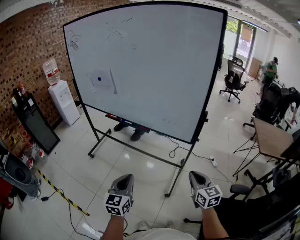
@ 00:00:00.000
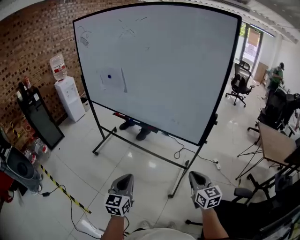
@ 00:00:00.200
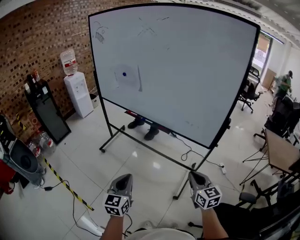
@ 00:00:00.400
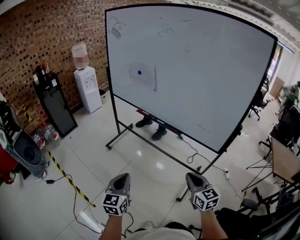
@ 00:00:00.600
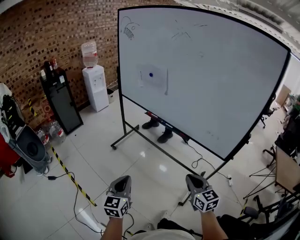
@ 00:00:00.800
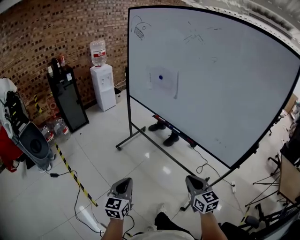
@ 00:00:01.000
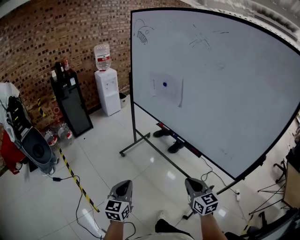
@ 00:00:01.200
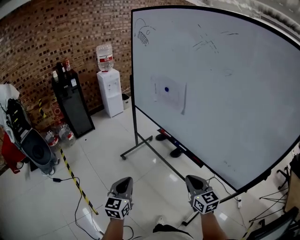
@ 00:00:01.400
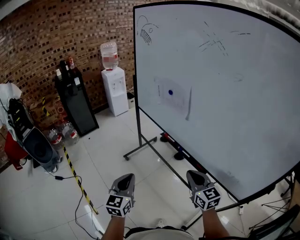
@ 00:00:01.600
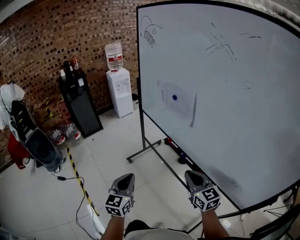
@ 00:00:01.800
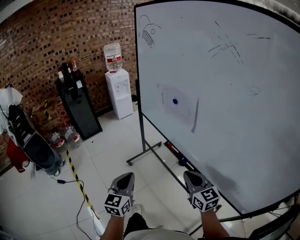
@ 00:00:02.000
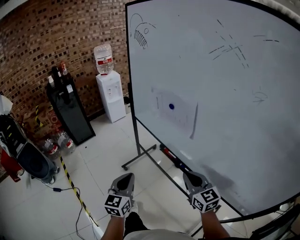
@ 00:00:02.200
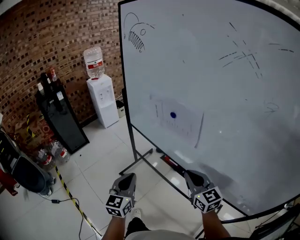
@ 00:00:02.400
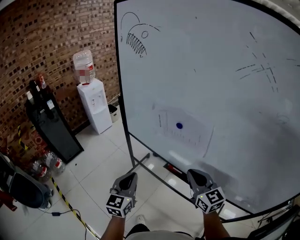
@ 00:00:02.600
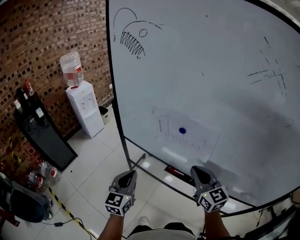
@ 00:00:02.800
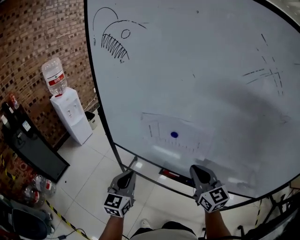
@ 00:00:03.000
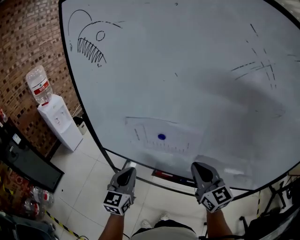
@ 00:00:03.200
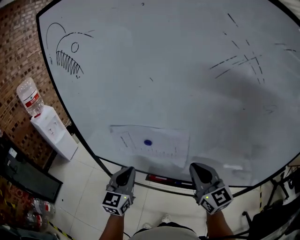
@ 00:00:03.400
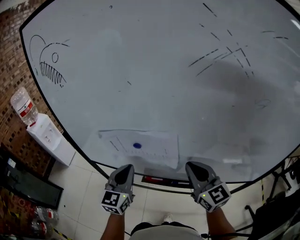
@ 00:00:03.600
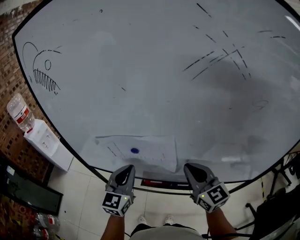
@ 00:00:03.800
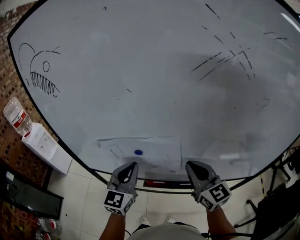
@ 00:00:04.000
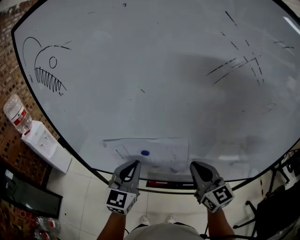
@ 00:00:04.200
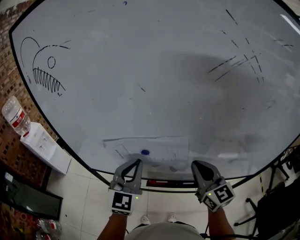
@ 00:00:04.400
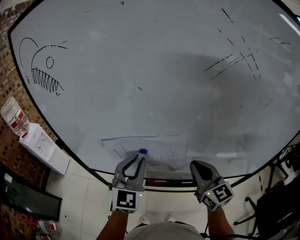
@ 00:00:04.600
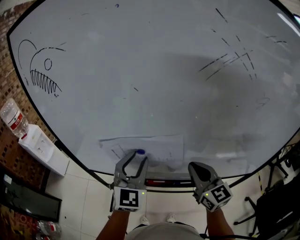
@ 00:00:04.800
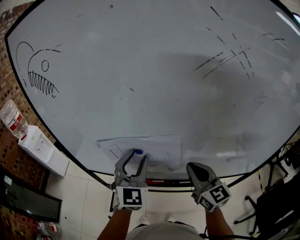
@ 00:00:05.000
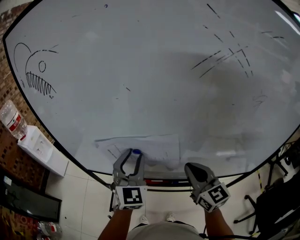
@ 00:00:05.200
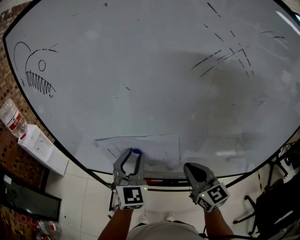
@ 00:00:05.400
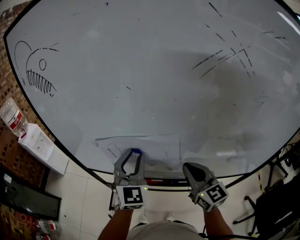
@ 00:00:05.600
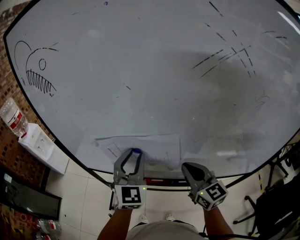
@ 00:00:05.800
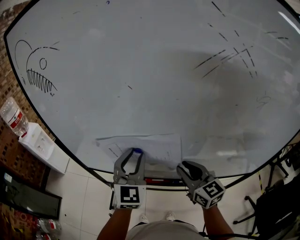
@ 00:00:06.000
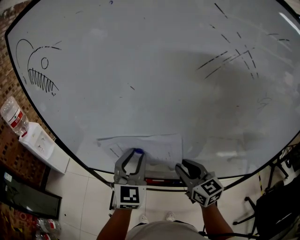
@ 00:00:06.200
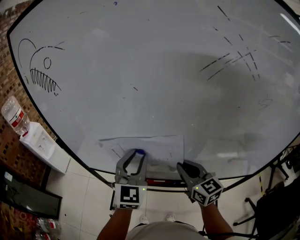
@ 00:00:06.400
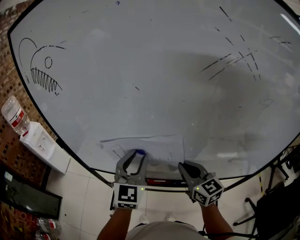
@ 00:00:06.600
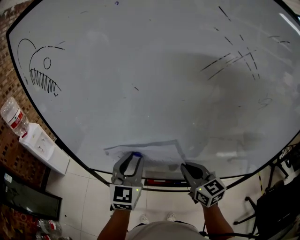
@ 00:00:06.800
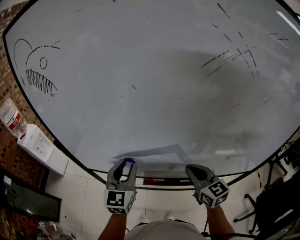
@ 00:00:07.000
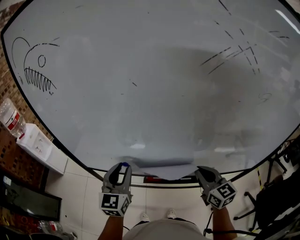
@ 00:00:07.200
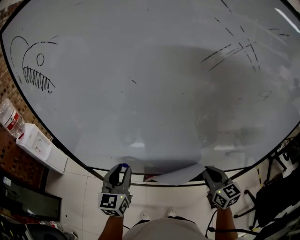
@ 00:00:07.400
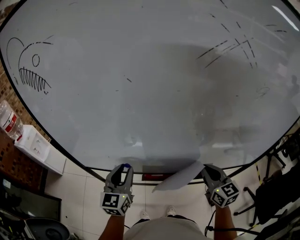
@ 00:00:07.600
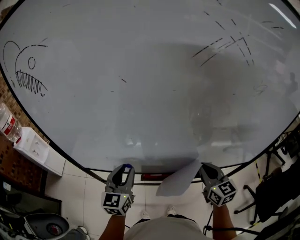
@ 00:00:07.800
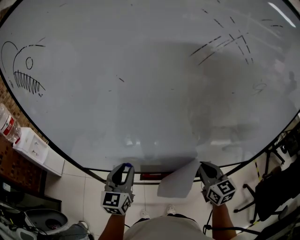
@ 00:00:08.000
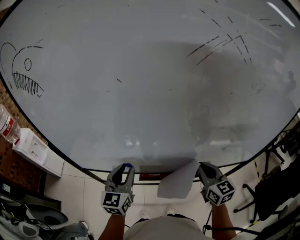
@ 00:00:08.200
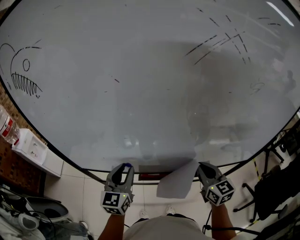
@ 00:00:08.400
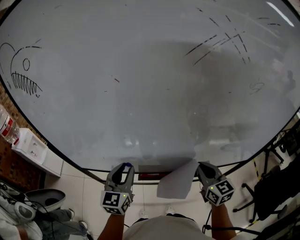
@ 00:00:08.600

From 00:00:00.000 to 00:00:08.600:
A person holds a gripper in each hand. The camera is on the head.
From 00:00:00.000 to 00:00:01.400: The left gripper changes place by approximately 30 cm, and swivels roughly 20 degrees; the right gripper moves some 40 cm, and rotates roughly 30 degrees.
From 00:00:01.400 to 00:00:02.800: Both grippers move forward, roughly 40 cm.
From 00:00:02.800 to 00:00:04.400: The right gripper changes place by roughly 10 cm, and turns by some 30 degrees, while the left gripper shifts by roughly 25 cm, and swivels roughly 30 degrees.
From 00:00:04.400 to 00:00:05.800: The left gripper opens.
From 00:00:05.800 to 00:00:07.200: The left gripper shifts roughly 10 cm downward and to the left, and turns by roughly 20 degrees; the right gripper ends up roughly 5 cm from where it was, and opens and closes again.
From 00:00:07.200 to 00:00:08.600: The grippers move only a little.

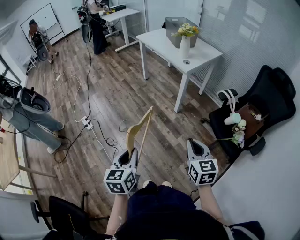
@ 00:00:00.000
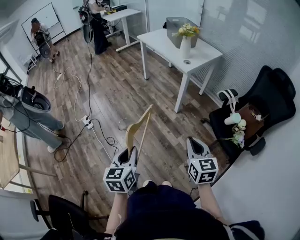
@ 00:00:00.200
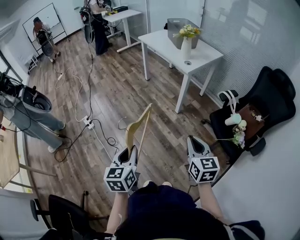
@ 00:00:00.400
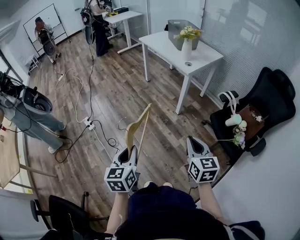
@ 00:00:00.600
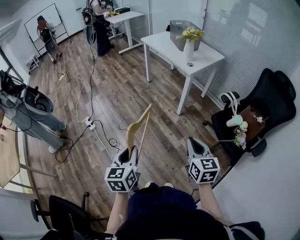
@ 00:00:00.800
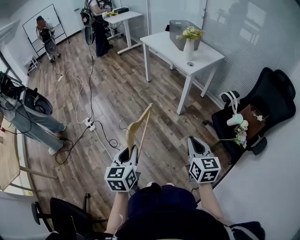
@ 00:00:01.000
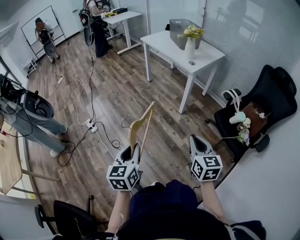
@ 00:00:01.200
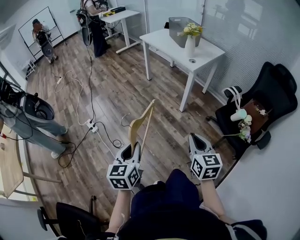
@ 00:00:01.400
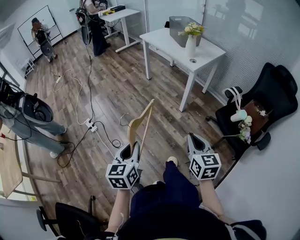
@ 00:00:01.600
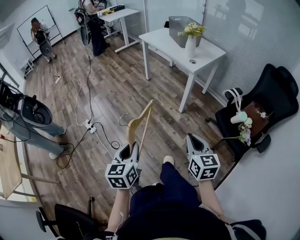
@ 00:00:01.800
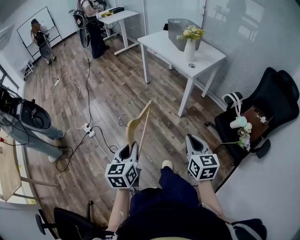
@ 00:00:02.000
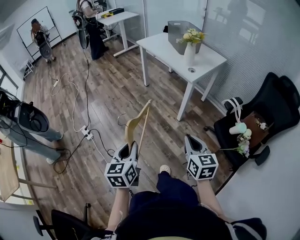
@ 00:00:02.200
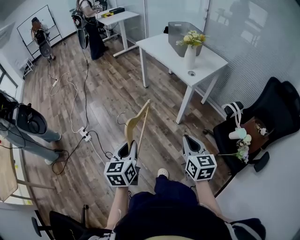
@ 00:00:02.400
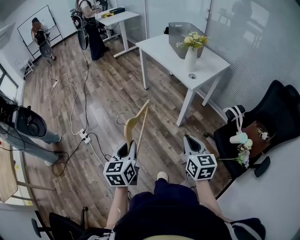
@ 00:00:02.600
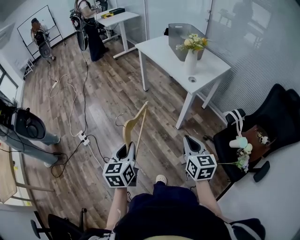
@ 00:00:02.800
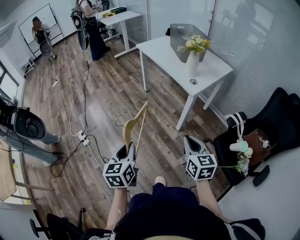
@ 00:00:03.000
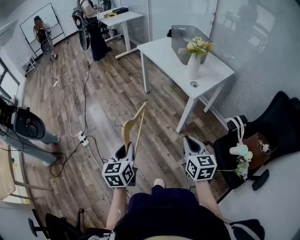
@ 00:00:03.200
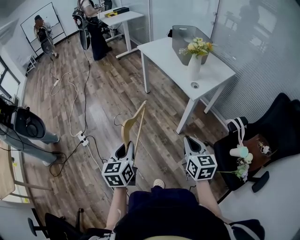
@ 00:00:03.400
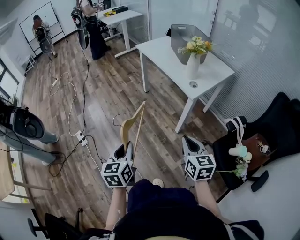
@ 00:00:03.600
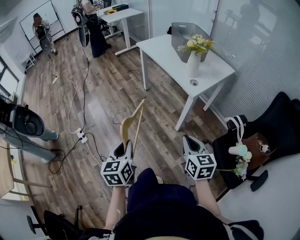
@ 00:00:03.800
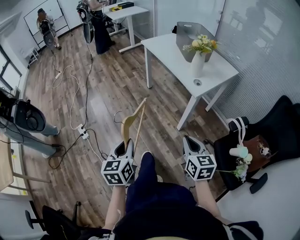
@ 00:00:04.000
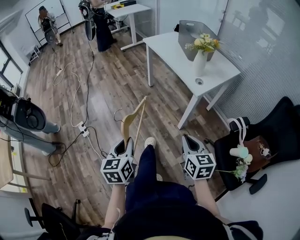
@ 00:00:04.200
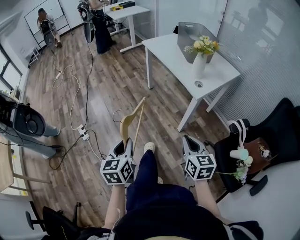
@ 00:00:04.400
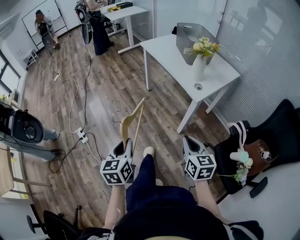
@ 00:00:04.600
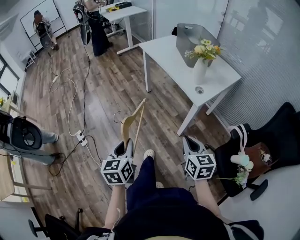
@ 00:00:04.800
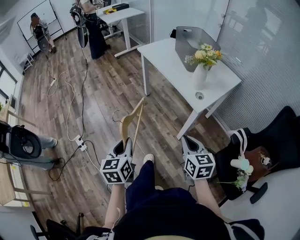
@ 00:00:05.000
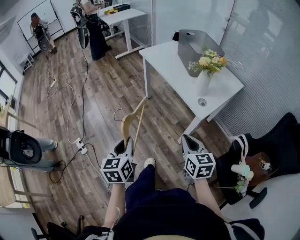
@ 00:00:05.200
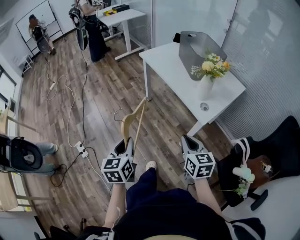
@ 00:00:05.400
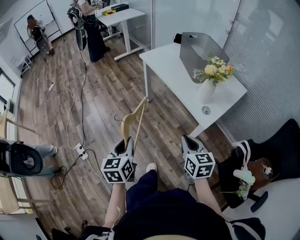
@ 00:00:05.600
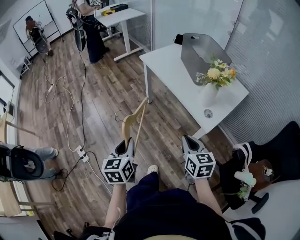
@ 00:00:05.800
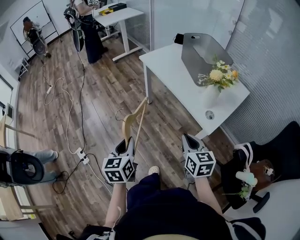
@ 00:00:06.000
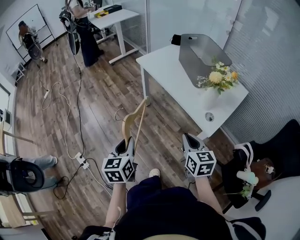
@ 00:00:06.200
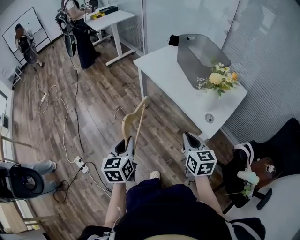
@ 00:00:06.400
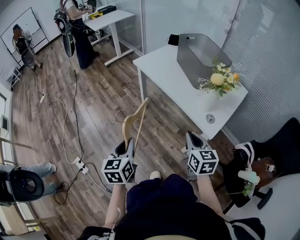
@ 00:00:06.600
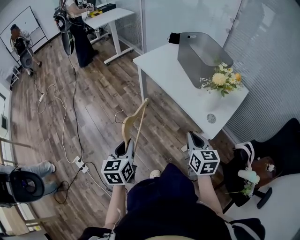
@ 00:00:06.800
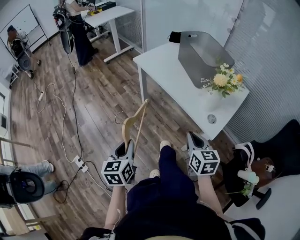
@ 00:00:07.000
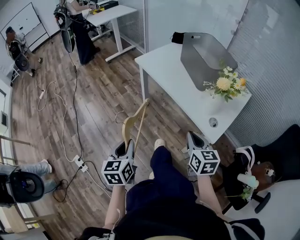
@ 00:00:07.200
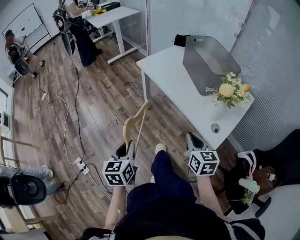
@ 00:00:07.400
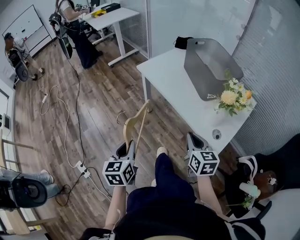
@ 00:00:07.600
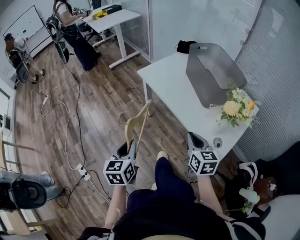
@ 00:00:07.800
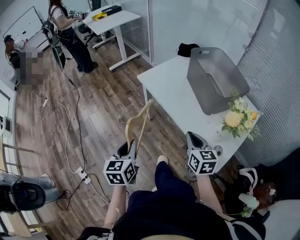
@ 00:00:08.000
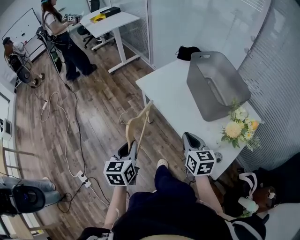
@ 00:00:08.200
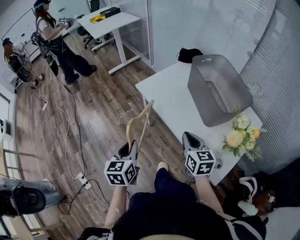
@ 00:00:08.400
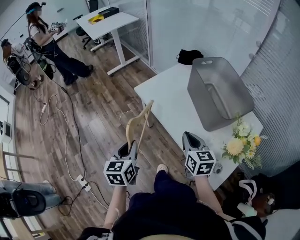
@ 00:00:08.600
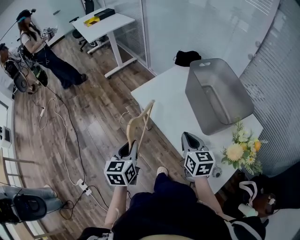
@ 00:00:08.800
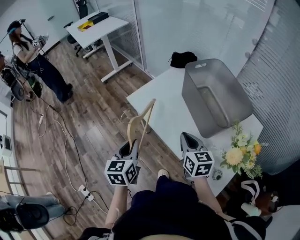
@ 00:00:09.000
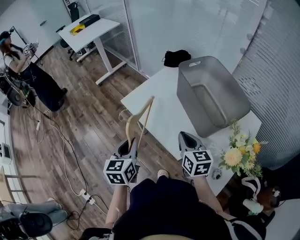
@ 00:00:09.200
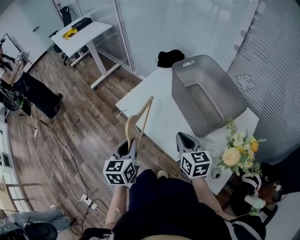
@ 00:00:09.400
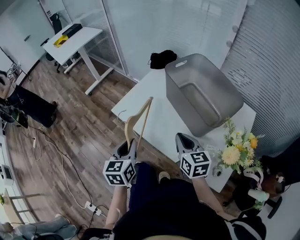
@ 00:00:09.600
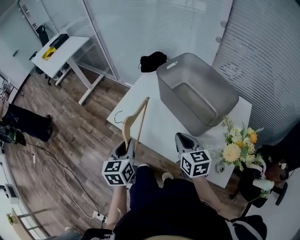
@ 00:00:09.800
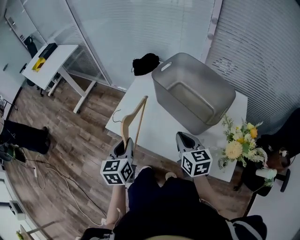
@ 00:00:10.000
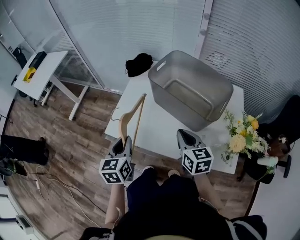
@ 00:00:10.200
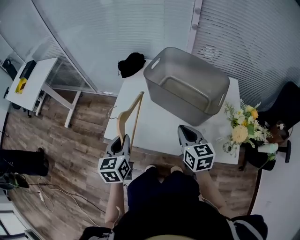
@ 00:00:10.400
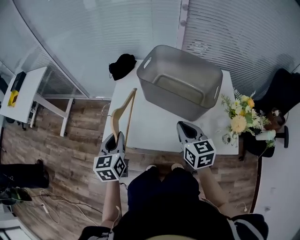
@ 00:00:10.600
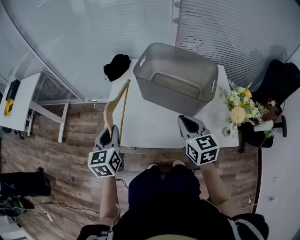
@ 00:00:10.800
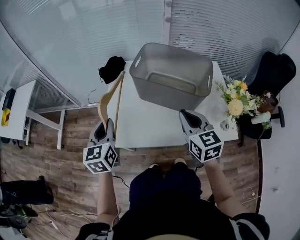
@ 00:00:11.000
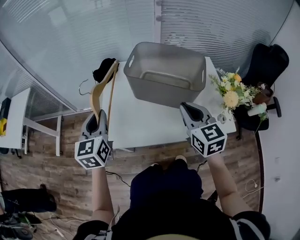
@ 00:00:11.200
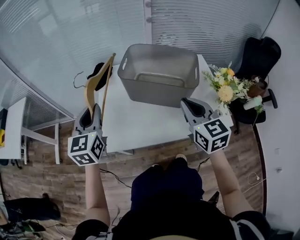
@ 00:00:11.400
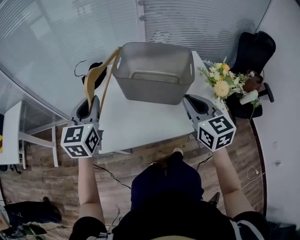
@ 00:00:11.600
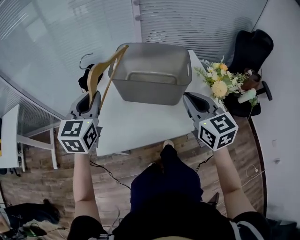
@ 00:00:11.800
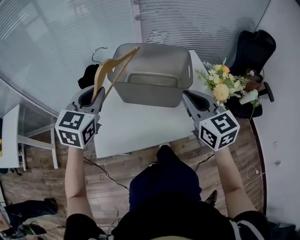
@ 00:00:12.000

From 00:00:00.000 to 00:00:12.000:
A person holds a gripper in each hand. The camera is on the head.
From 00:00:00.000 to 00:00:01.600: Both grippers travel together to the left, roughly 10 cm.
From 00:00:01.600 to 00:00:03.000: The two grippers go approximately 25 cm forward.
From 00:00:03.000 to 00:00:04.400: The grippers move only a little.
From 00:00:04.400 to 00:00:06.000: The two grippers go some 30 cm forward.
From 00:00:06.000 to 00:00:07.600: Both grippers travel together forward, about 15 cm.
From 00:00:07.600 to 00:00:09.000: The grippers both shift forward by approximately 25 cm.
From 00:00:09.000 to 00:00:10.400: The left gripper moves about 20 cm, and rotates about 30 degrees; the right gripper ends up approximately 5 cm from where it was, and turns by approximately 30 degrees.
From 00:00:10.400 to 00:00:12.000: The grippers both shift upward by approximately 15 cm. The right gripper turns by about 20 degrees; the left gripper turns by some 50 degrees.

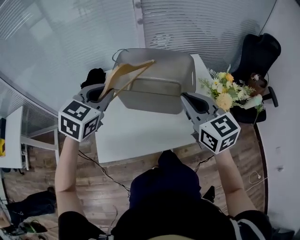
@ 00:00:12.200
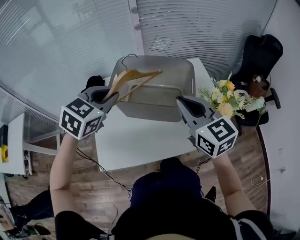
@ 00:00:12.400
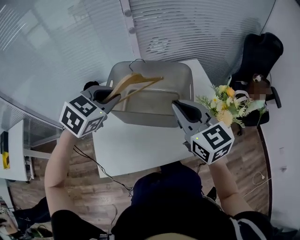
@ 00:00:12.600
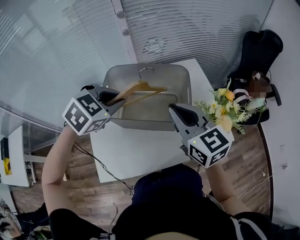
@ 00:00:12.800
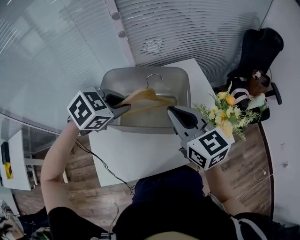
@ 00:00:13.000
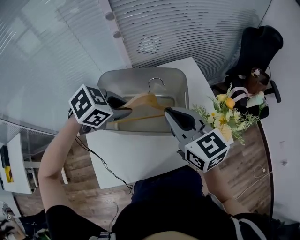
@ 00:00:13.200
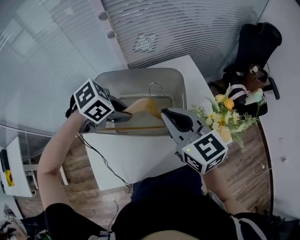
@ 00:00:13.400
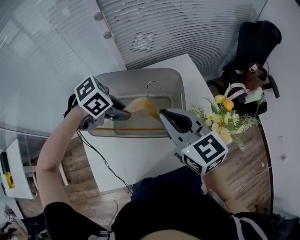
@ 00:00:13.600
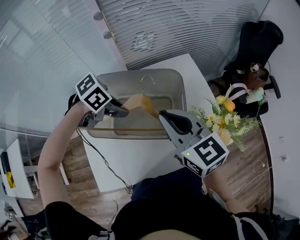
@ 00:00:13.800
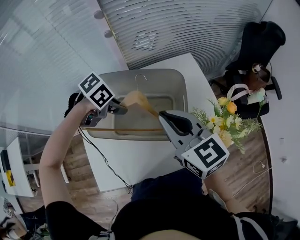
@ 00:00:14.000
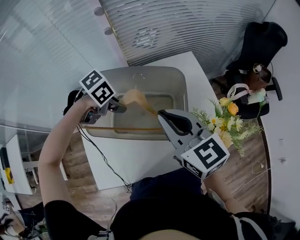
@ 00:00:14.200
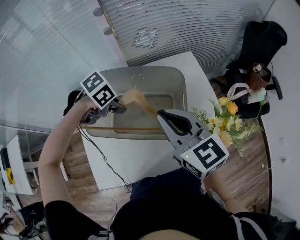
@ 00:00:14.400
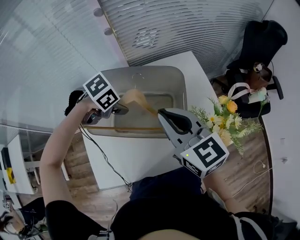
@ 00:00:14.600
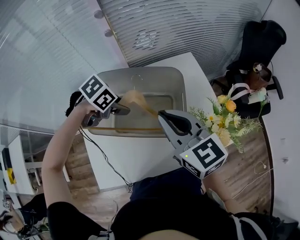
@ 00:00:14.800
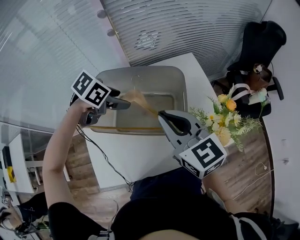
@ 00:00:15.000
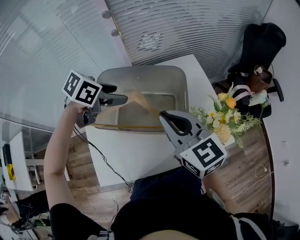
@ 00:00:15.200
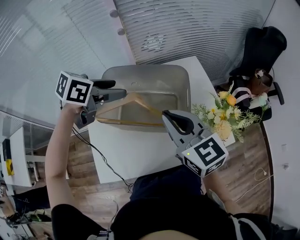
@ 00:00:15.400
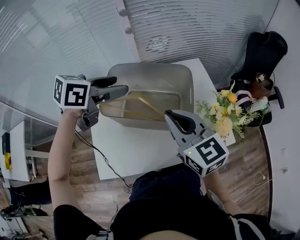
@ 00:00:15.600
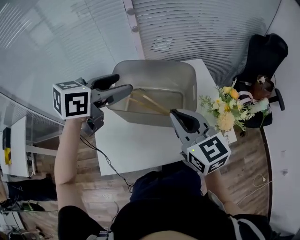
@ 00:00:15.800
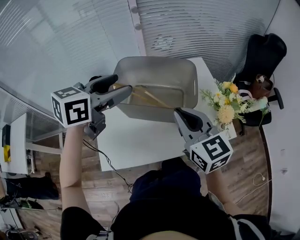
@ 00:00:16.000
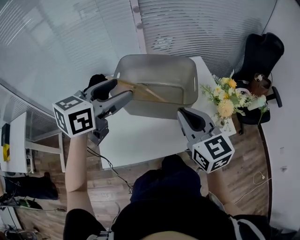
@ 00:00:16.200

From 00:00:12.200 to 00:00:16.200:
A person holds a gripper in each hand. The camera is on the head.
From 00:00:12.200 to 00:00:13.600: The right gripper moves about 10 cm. Meanwhile the left gripper shifts by approximately 20 cm, and swivels approximately 70 degrees.
From 00:00:13.600 to 00:00:14.800: The left gripper changes place by some 5 cm, and opens up.
From 00:00:14.800 to 00:00:16.200: The right gripper ends up some 10 cm from where it was, while the left gripper goes some 20 cm upward, and tips its fingers upward by roughly 40 degrees.
